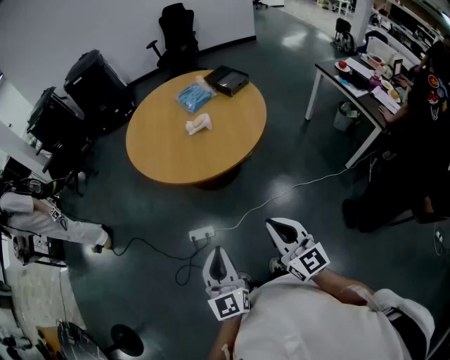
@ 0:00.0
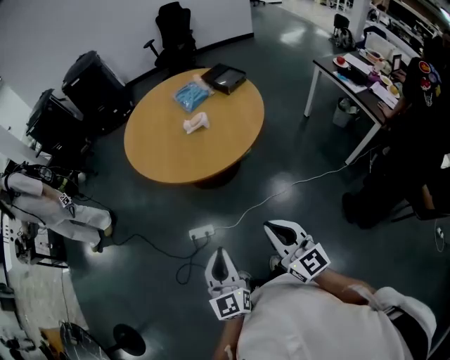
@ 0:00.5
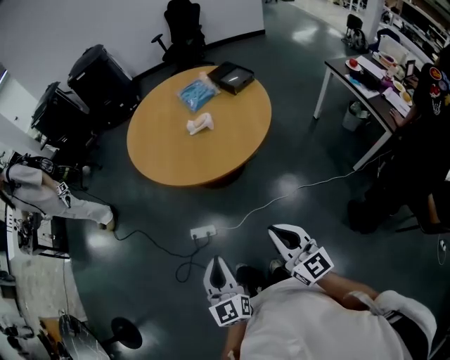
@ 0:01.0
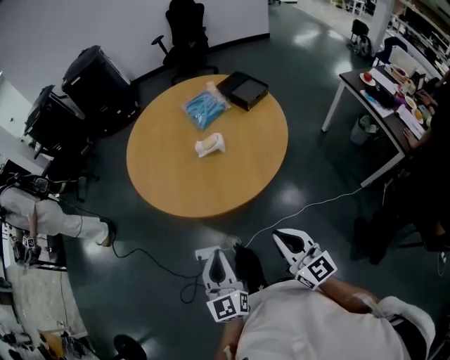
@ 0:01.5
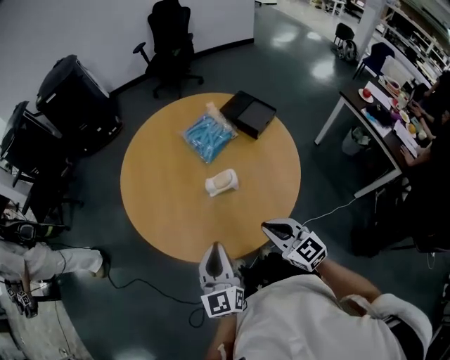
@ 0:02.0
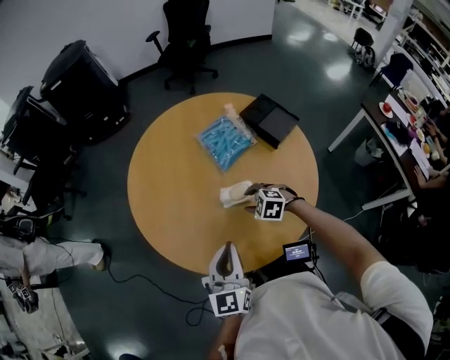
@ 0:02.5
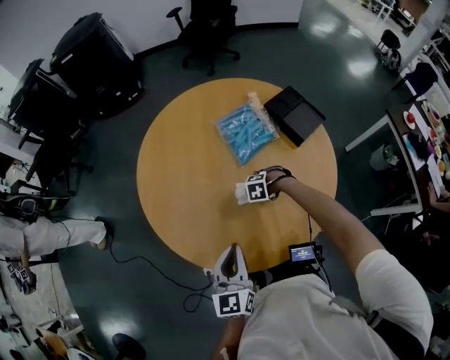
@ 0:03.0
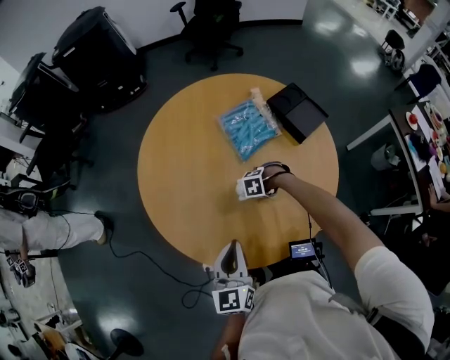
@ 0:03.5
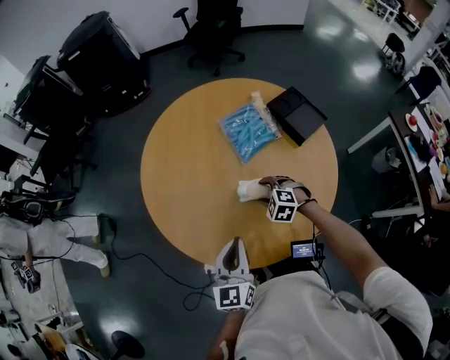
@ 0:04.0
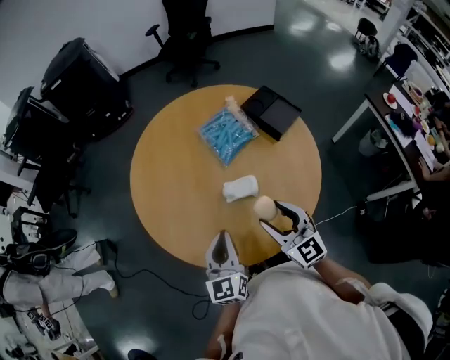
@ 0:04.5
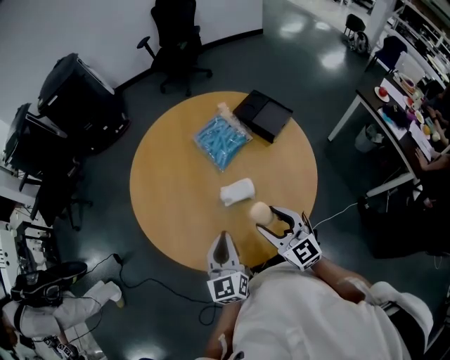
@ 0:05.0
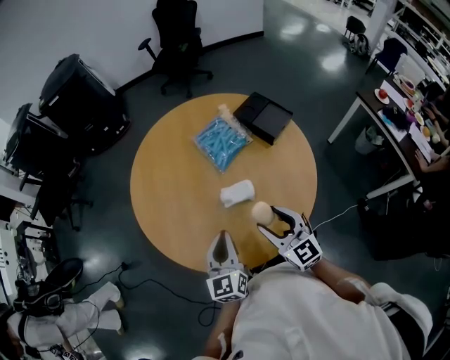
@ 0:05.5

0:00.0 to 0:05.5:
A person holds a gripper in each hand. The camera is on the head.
0:00.0 to 0:02.0: The pair of grippers is taken forward, some 40 cm. The right gripper turns by roughly 20 degrees.
0:02.0 to 0:03.5: The right gripper heads downward, covering some 30 cm, points its fingers some 70 degrees further downward, and opens, while the left gripper ends up approximately 10 cm from where it was.
0:03.5 to 0:05.5: The right gripper goes approximately 30 cm upward, and tilts its fingers roughly 70 degrees upward.

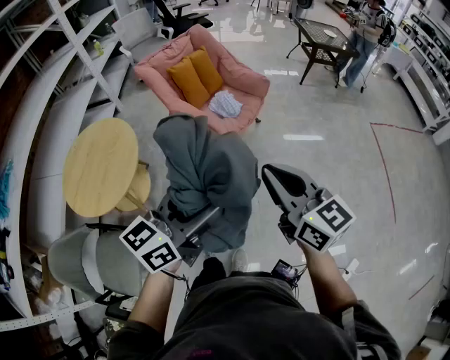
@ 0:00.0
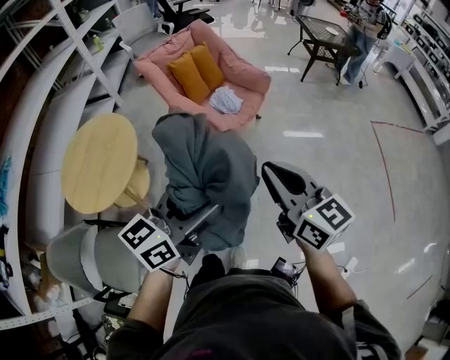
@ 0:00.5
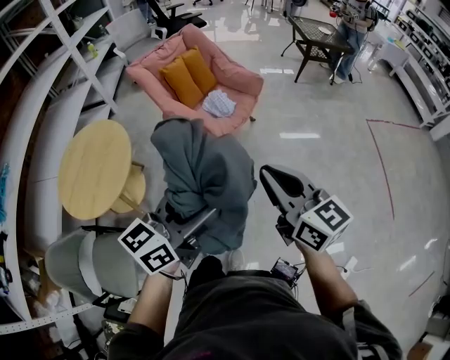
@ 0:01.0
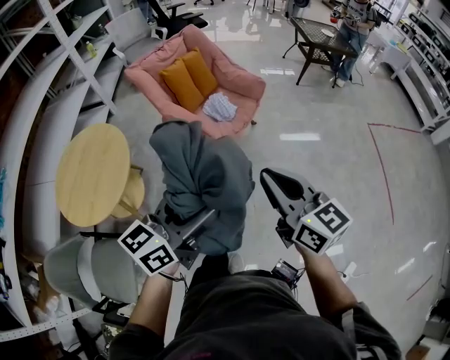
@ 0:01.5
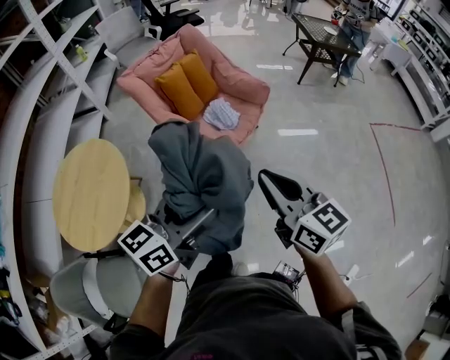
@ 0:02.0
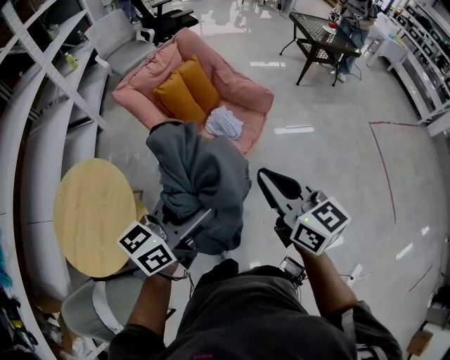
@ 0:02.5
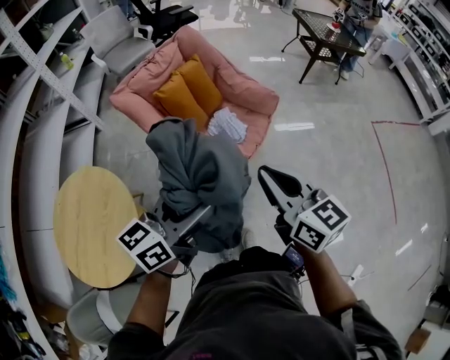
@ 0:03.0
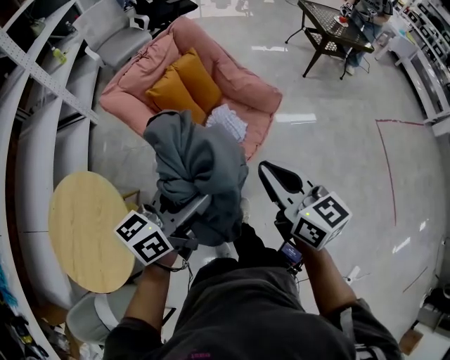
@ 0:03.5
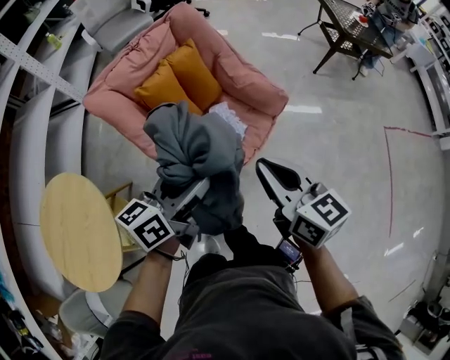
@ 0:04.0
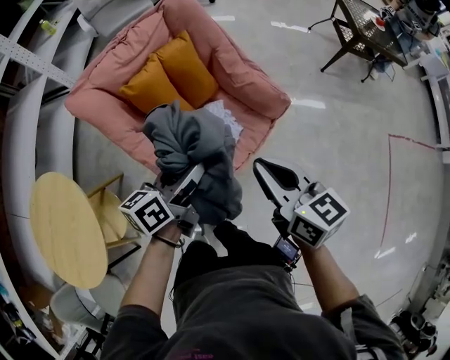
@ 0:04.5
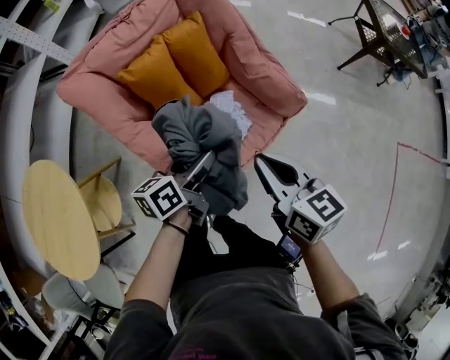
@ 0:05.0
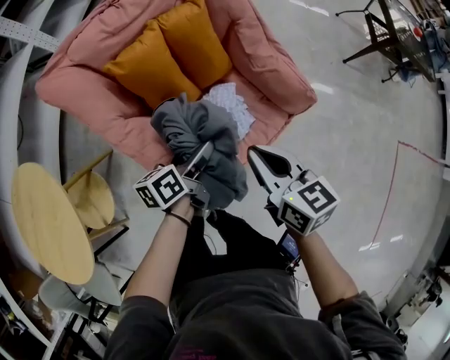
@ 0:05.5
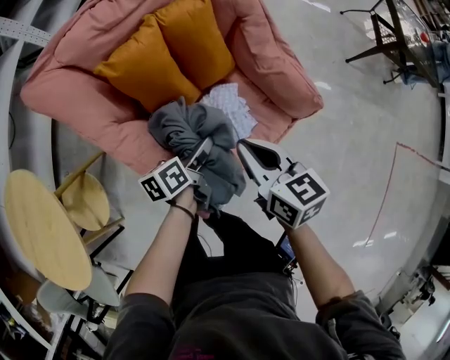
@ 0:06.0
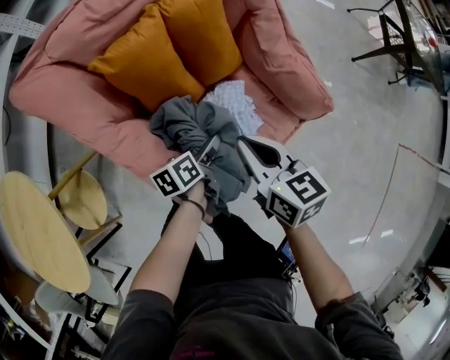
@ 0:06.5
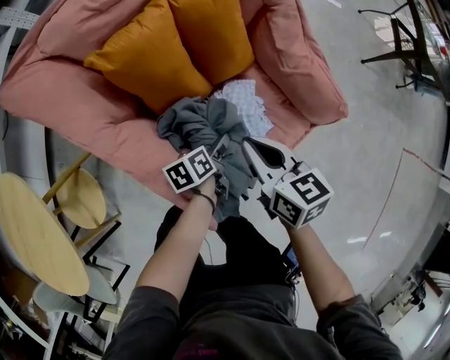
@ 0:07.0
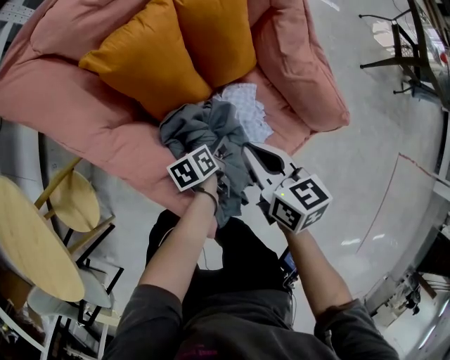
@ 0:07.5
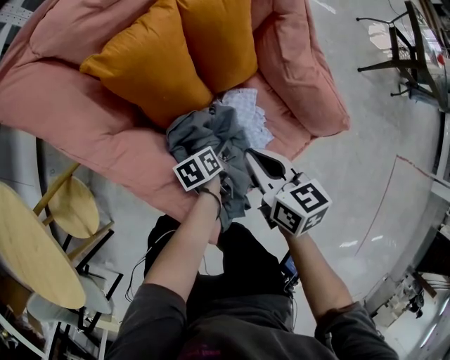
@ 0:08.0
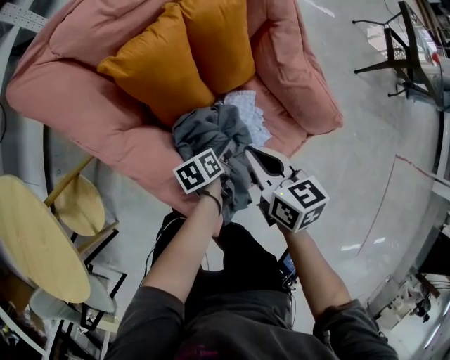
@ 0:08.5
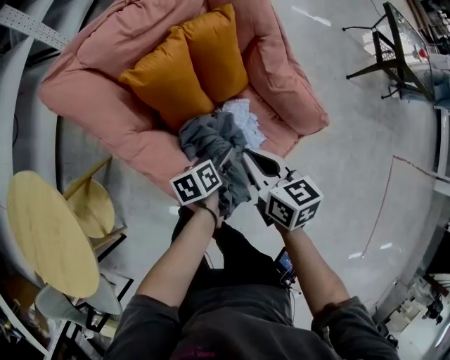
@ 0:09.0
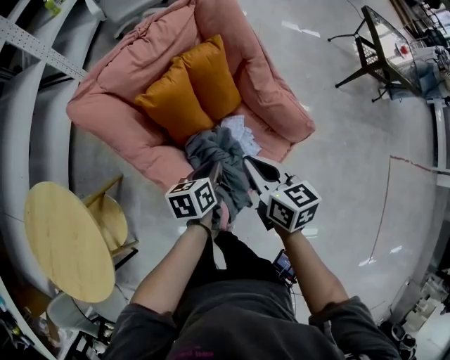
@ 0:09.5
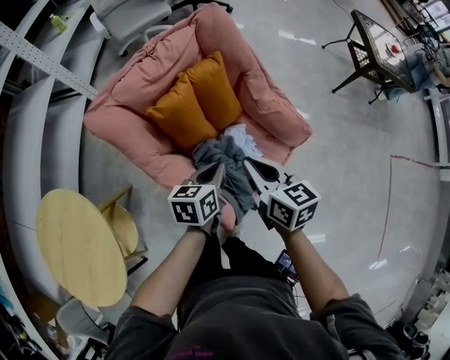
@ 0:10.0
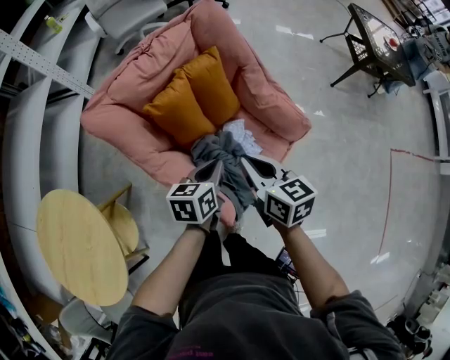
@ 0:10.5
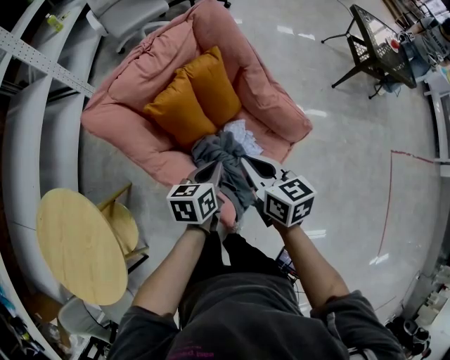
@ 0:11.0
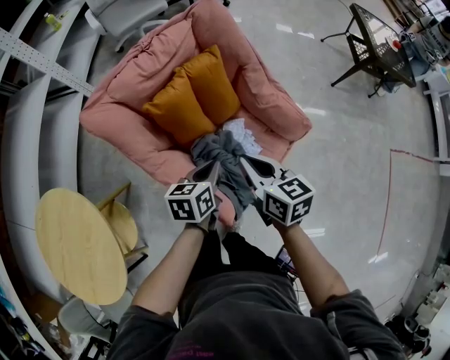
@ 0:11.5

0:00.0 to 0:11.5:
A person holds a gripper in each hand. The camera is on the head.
0:00.0 to 0:02.0: The grippers both shift forward by approximately 15 cm.
0:02.0 to 0:04.0: Both grippers move forward, about 35 cm.
0:04.0 to 0:06.0: The grippers both shift downward and forward by about 35 cm. The left gripper swivels about 40 degrees.
0:06.0 to 0:07.5: The left gripper is displaced downward by about 15 cm. Meanwhile the right gripper shifts roughly 10 cm downward.
0:07.5 to 0:09.5: The right gripper is displaced upward by approximately 15 cm; the left gripper goes some 25 cm upward, changes its angle by about 20 degrees, and closes up.
0:09.5 to 0:11.5: The left gripper travels upward by some 5 cm.

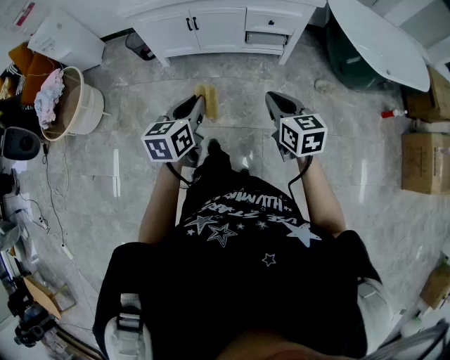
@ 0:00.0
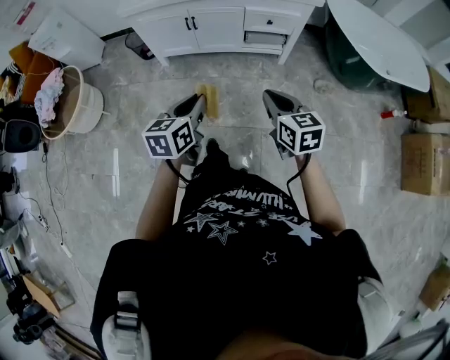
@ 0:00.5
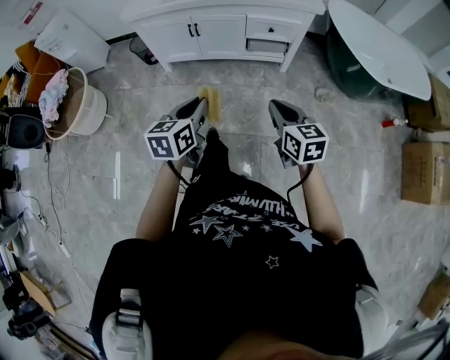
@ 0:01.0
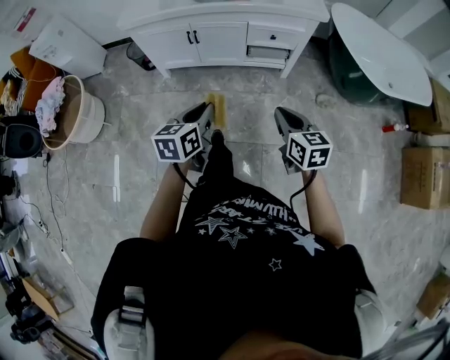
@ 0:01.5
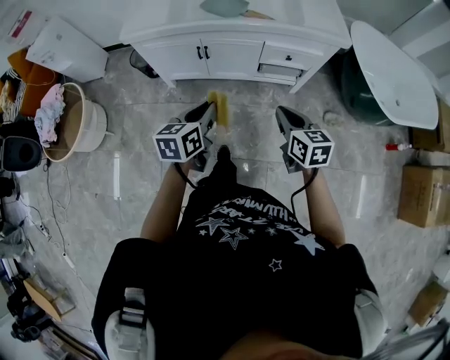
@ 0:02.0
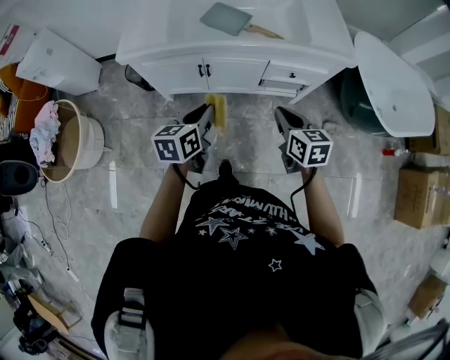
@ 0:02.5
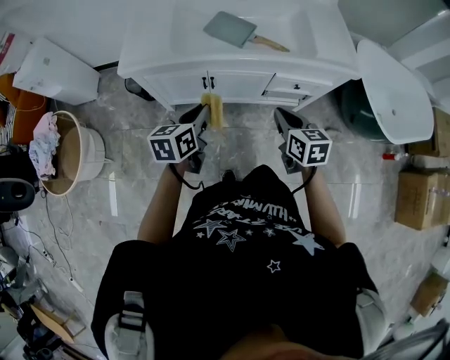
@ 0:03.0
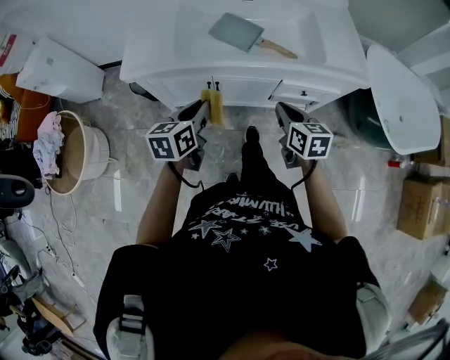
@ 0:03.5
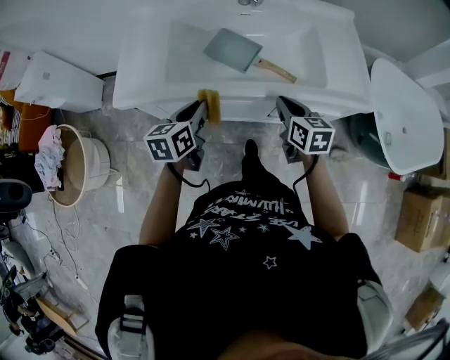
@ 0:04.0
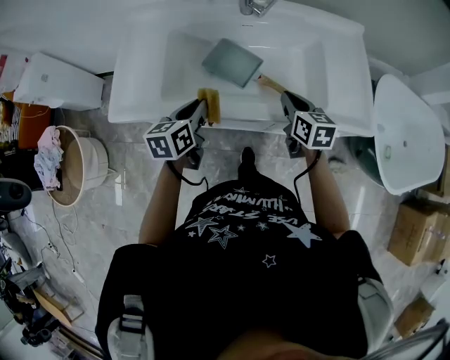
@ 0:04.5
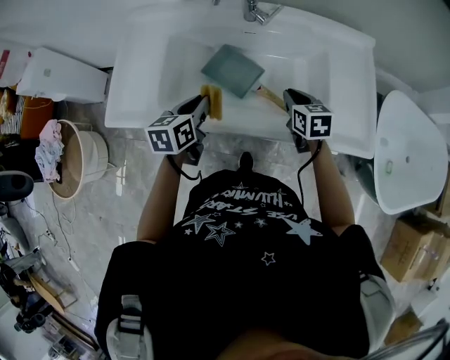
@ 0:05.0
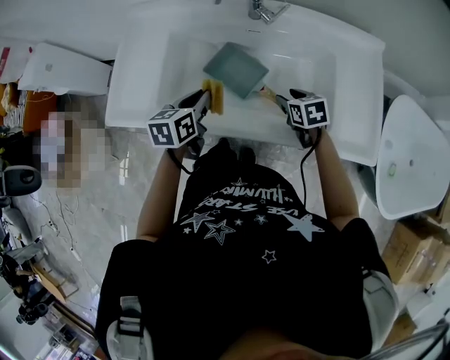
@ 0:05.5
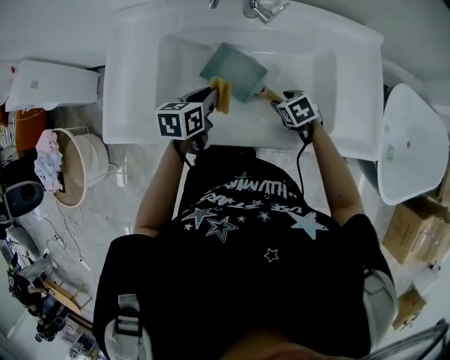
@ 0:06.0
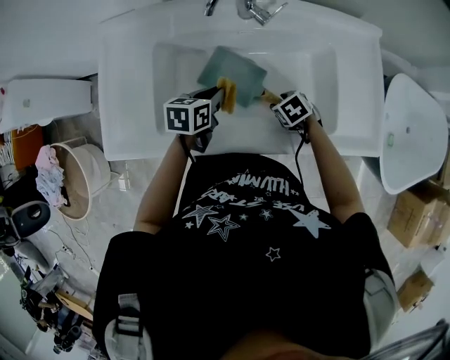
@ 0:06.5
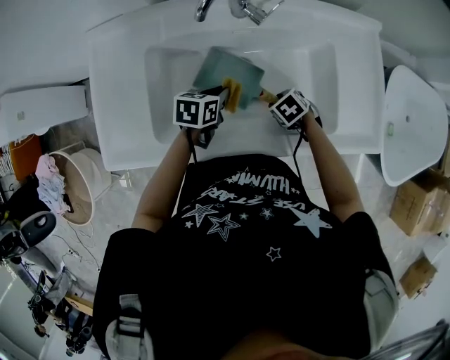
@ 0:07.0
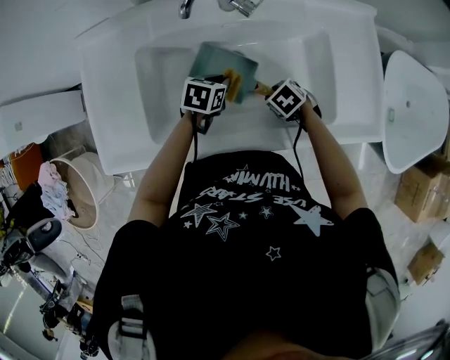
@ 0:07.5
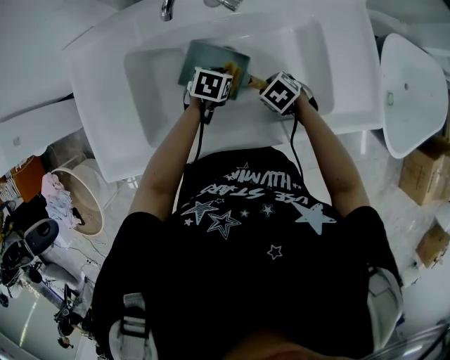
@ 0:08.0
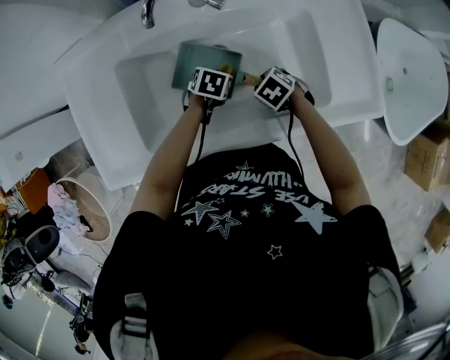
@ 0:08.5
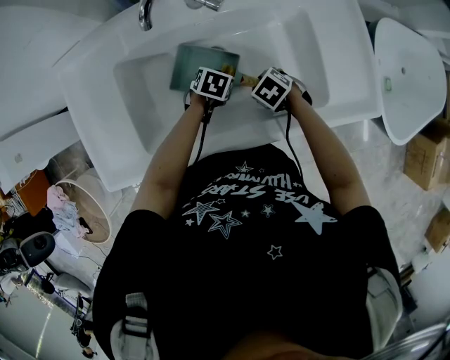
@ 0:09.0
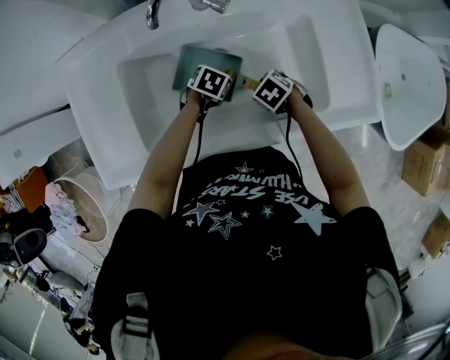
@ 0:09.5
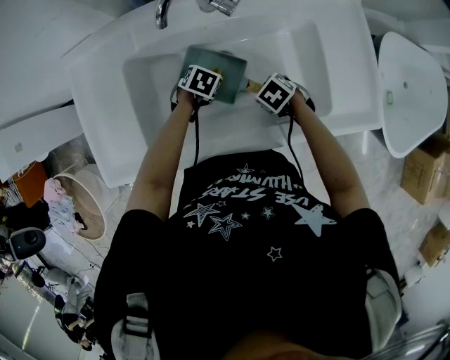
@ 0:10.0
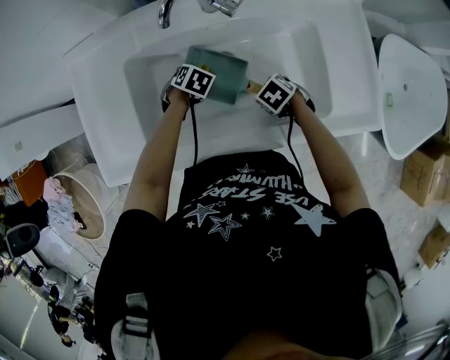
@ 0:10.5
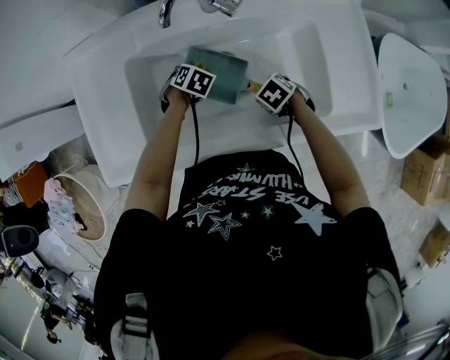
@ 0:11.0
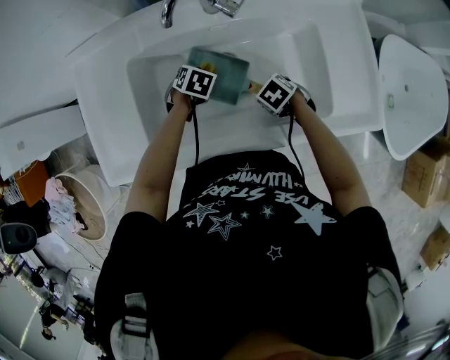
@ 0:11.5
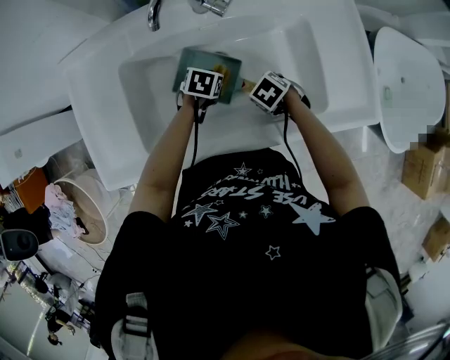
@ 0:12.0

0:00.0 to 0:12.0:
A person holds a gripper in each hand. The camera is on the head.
0:00.0 to 0:02.0: The grippers both shift forward by some 20 cm.
0:02.0 to 0:04.0: The grippers both shift forward by roughly 35 cm.
0:04.0 to 0:06.0: The left gripper moves forward, about 20 cm, while the right gripper shifts approximately 25 cm forward and downward, angles its fingers downward, by about 40 degrees, and opens up.
0:06.0 to 0:08.0: The left gripper moves downward, approximately 15 cm, and turns by about 40 degrees.
0:08.0 to 0:10.0: There are only small adjustments of the grippers.
